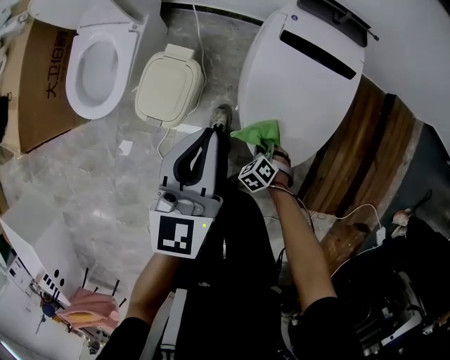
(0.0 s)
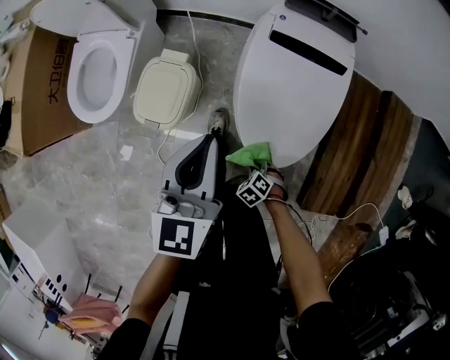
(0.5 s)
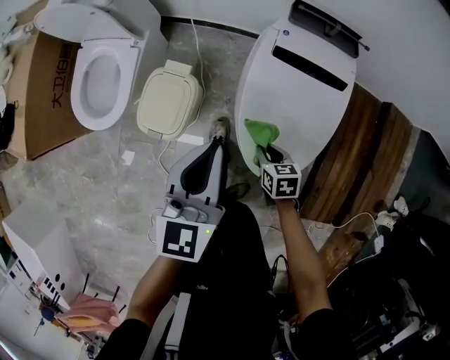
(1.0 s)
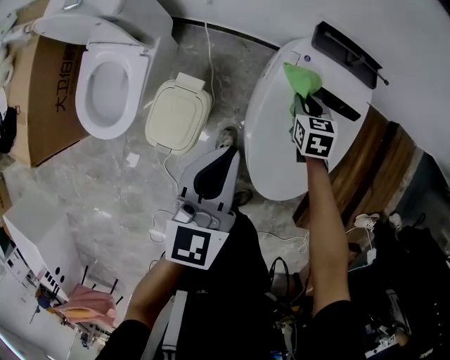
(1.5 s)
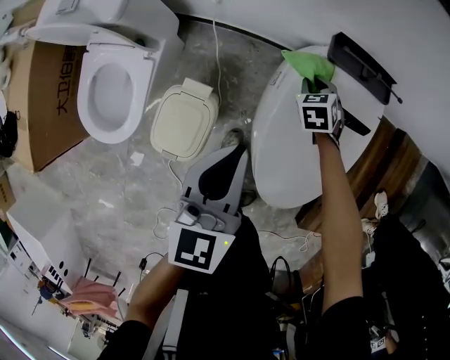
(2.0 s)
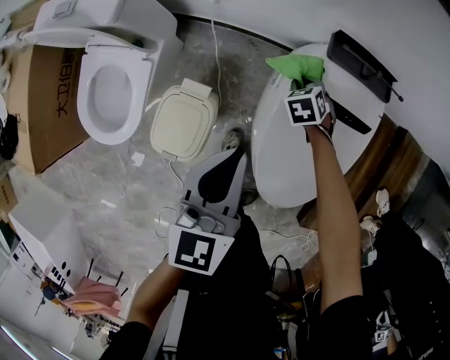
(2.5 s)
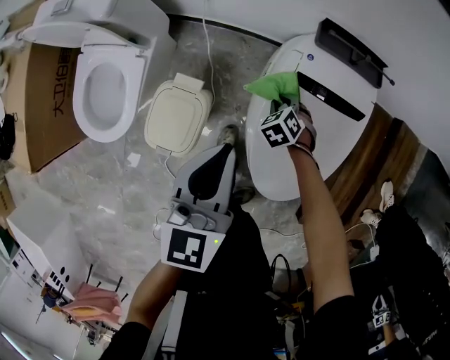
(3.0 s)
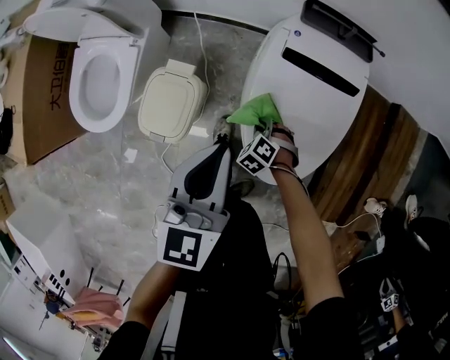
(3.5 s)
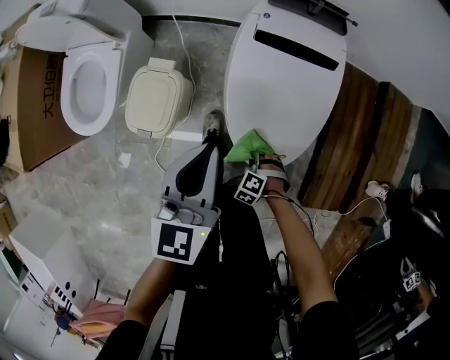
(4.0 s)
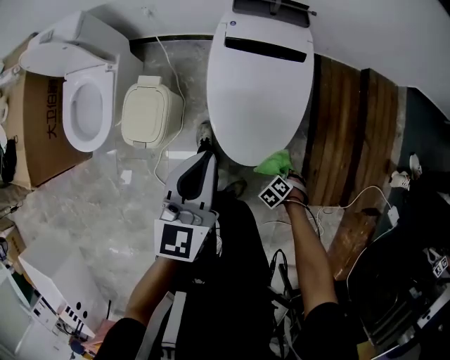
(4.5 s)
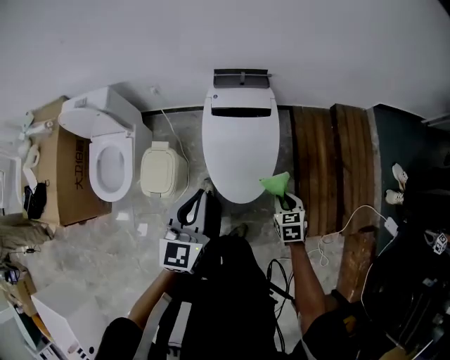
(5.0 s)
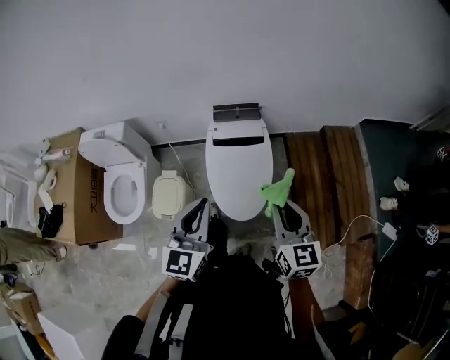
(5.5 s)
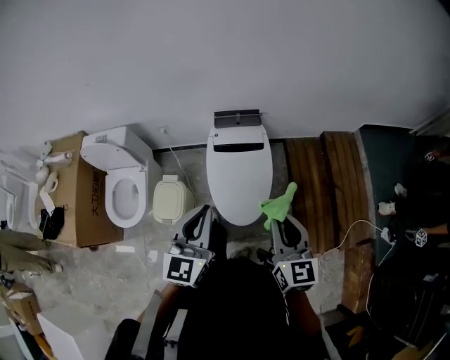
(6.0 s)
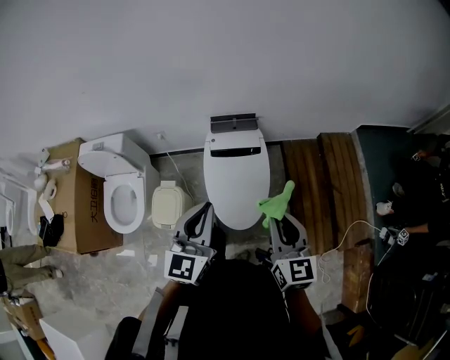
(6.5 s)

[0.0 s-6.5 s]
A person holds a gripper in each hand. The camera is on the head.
0.0 to 2.0 s: The right gripper moves some 40 cm, and changes its angle by roughly 30 degrees; the left gripper moves about 15 cm.
2.0 to 4.5 s: The left gripper ends up about 25 cm from where it was; the right gripper shifts by approximately 60 cm, and swivels approximately 40 degrees.
4.5 to 6.5 s: The left gripper heads upward, covering approximately 30 cm. Meanwhile the right gripper goes about 70 cm upward, and tips its fingers upward by about 70 degrees.

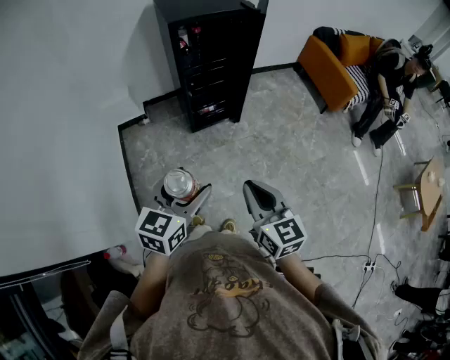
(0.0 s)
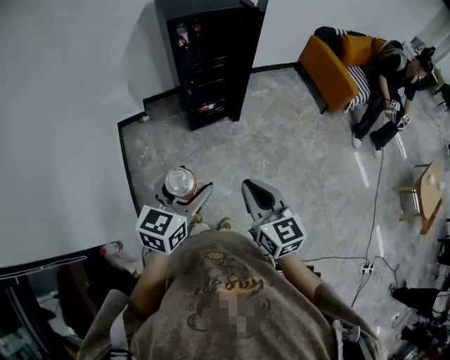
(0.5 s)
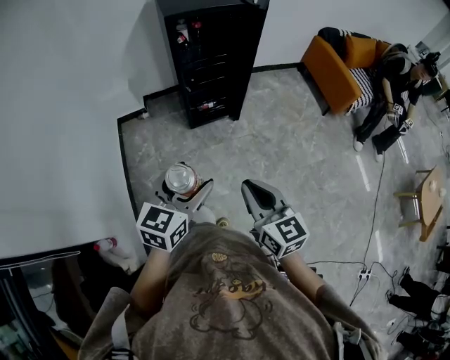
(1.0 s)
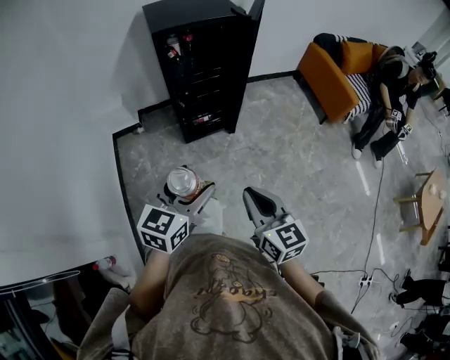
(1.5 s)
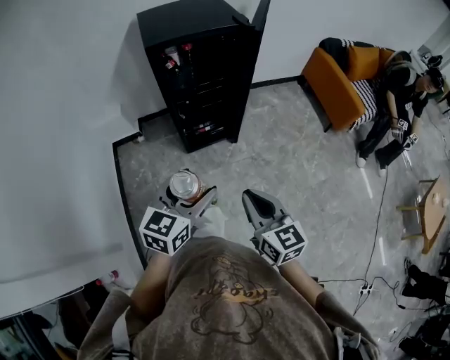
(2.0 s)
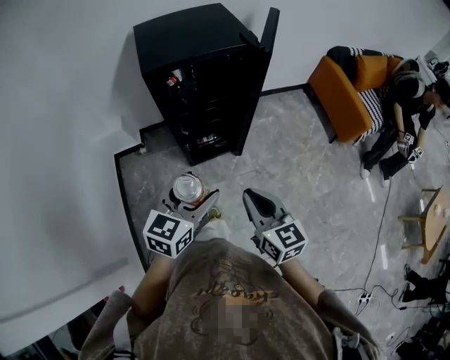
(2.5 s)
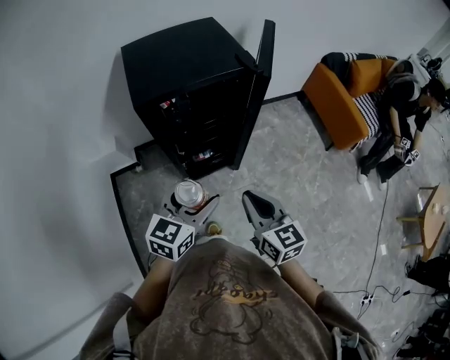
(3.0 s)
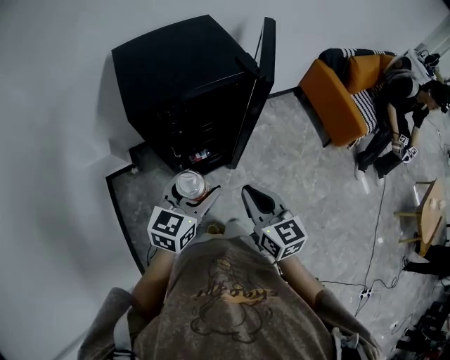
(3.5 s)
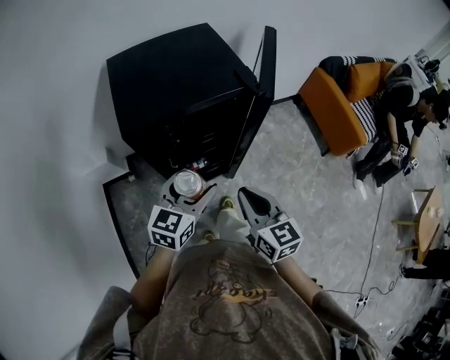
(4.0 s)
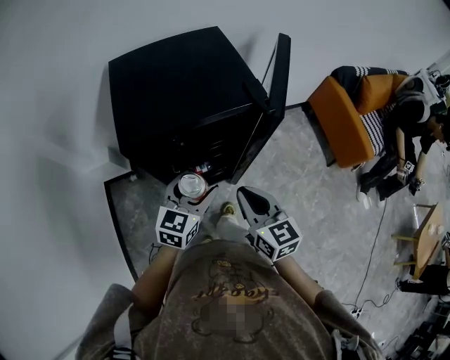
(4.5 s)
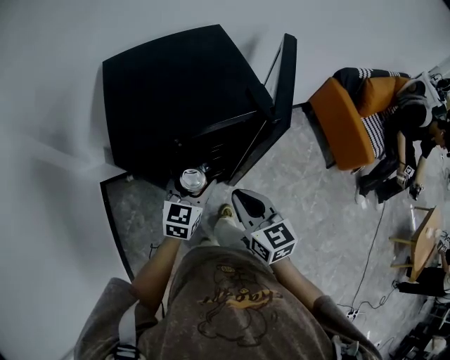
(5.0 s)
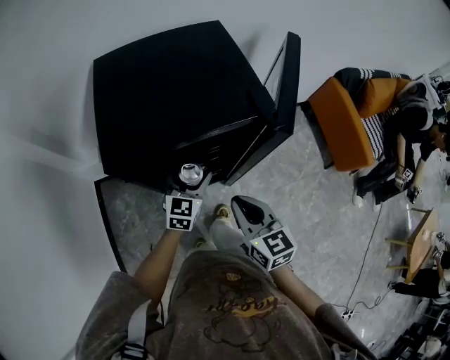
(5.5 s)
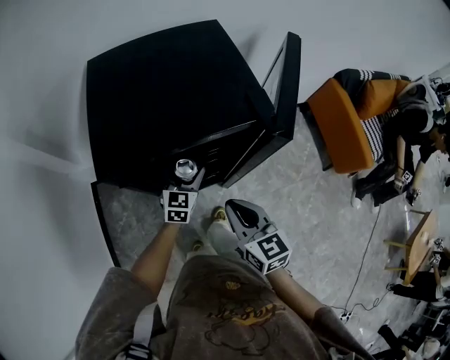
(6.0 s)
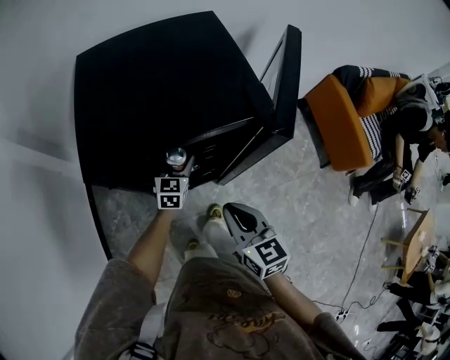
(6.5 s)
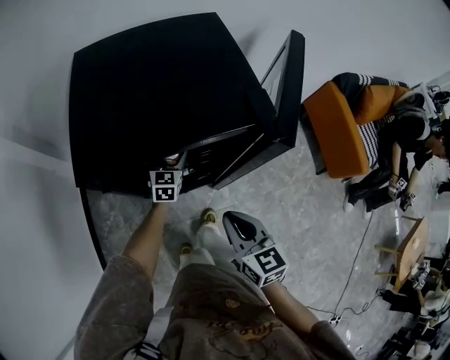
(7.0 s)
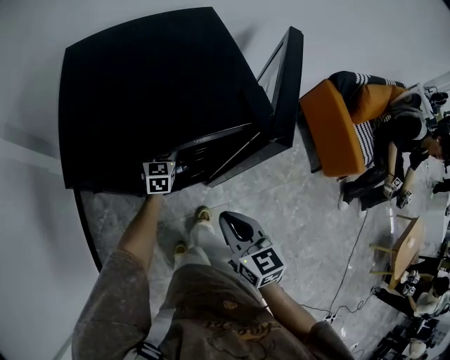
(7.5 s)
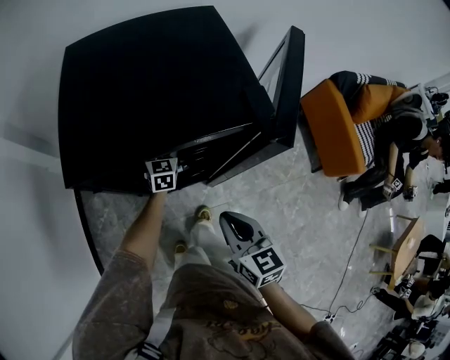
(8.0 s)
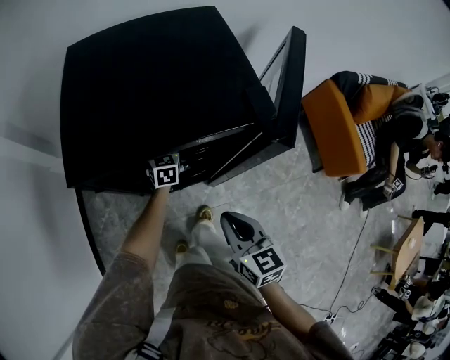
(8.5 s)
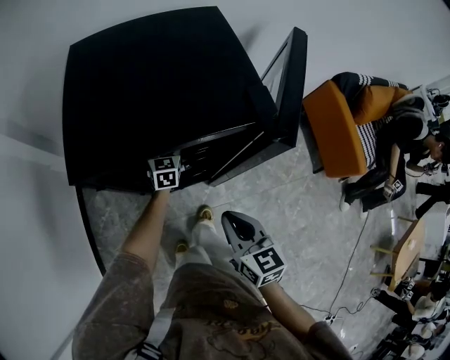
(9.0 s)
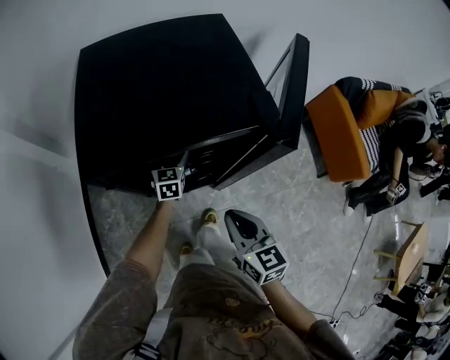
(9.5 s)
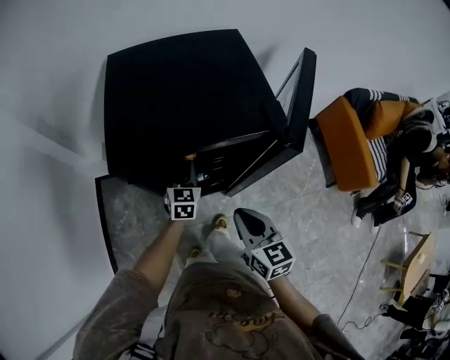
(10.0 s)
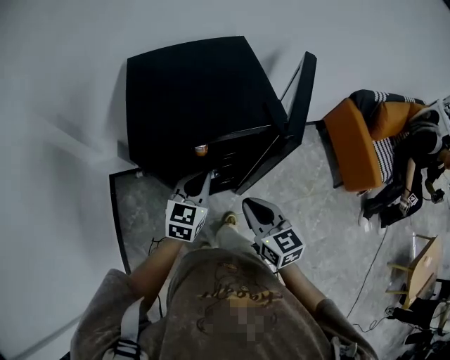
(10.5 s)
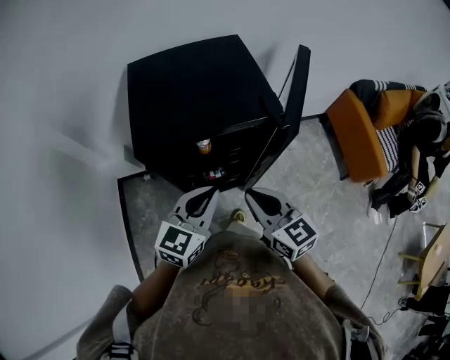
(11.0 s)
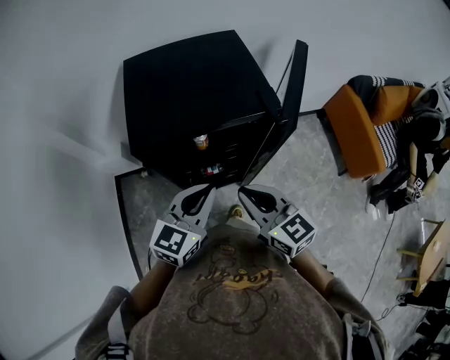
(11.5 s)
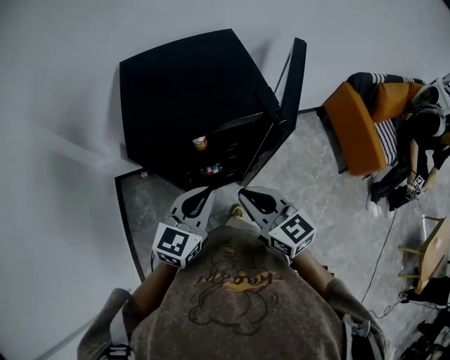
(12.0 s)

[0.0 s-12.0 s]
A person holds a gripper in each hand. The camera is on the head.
0.0 to 2.0 s: The right gripper travels forward by some 15 cm. The left gripper travels forward and to the right by some 20 cm.
2.0 to 4.0 s: Both grippers move forward, roughly 30 cm.
4.0 to 6.0 s: The left gripper goes about 25 cm forward and downward, while the right gripper travels forward and downward by some 10 cm.
6.0 to 8.0 s: The left gripper is displaced forward and downward by approximately 15 cm.
8.0 to 10.0 s: The left gripper heads backward and upward, covering roughly 10 cm, and closes.
10.0 to 12.0 s: The right gripper shifts some 10 cm upward; the left gripper heads upward and backward, covering approximately 25 cm, and changes its angle by some 30 degrees.

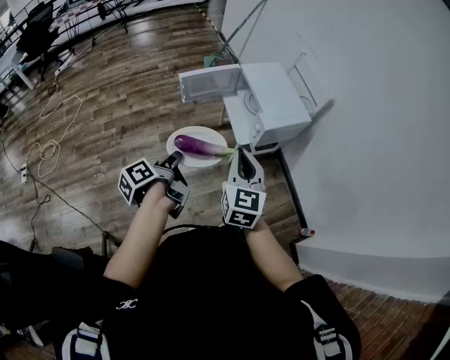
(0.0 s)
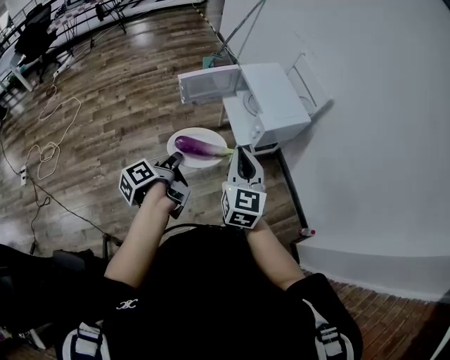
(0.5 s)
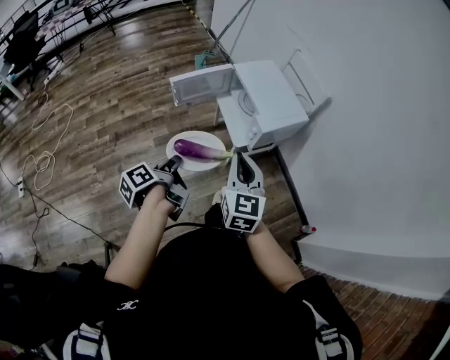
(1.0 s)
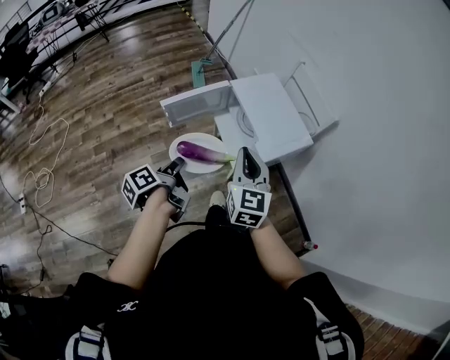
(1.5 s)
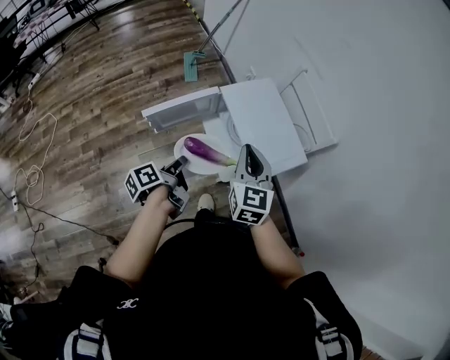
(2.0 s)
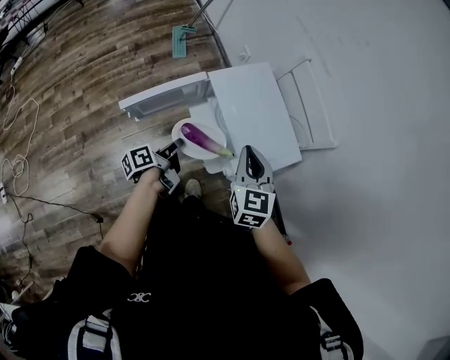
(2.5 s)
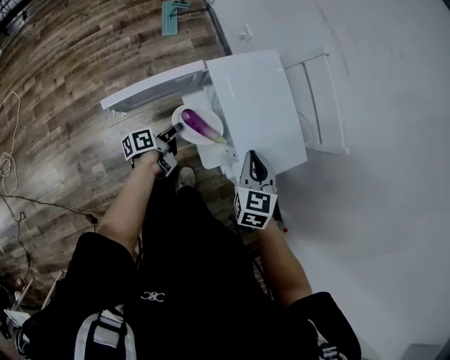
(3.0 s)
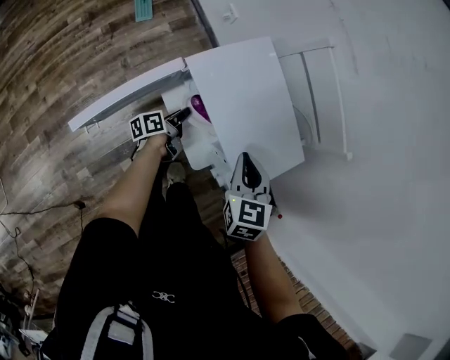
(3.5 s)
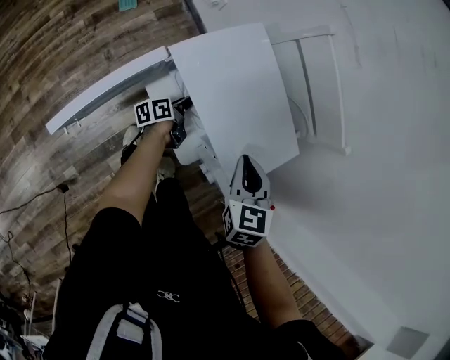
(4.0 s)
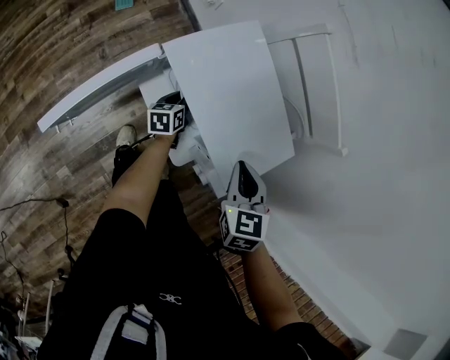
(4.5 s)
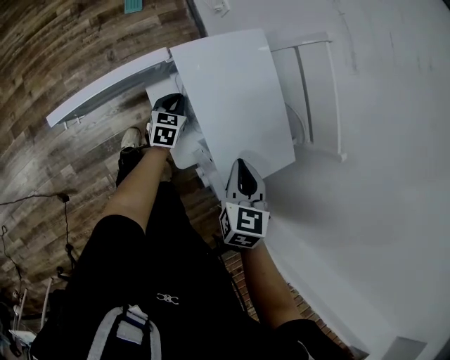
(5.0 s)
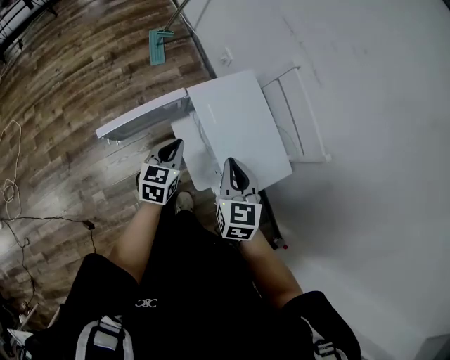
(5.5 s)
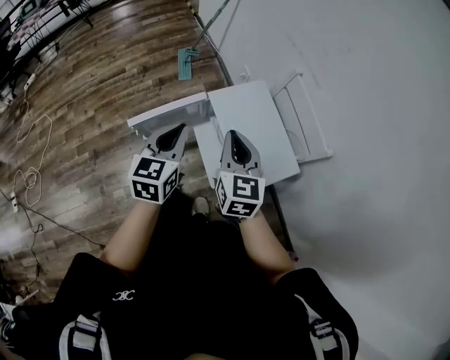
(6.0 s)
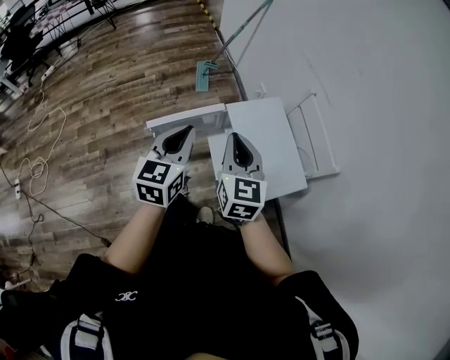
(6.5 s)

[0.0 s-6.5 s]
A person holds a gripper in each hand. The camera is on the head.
0.0 to 2.0 s: Both grippers move forward, approximately 35 cm.
2.0 to 4.5 s: The left gripper moves downward and forward, roughly 40 cm, and rolls clockwise, seen from behind, by roughly 50 degrees, while the right gripper travels downward, forward and to the right by approximately 25 cm, and swivels roughly 30 degrees.
4.5 to 6.5 s: The right gripper shifts about 25 cm upward, and angles its fingers upward, by about 30 degrees. The left gripper is displaced upward by roughly 50 cm, and rotates some 40 degrees.

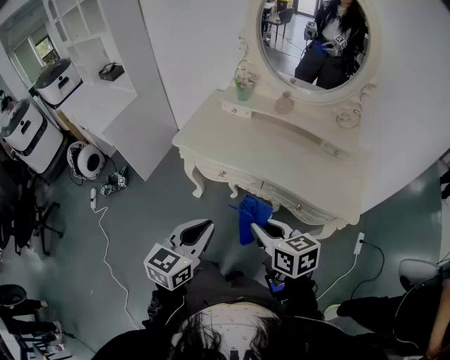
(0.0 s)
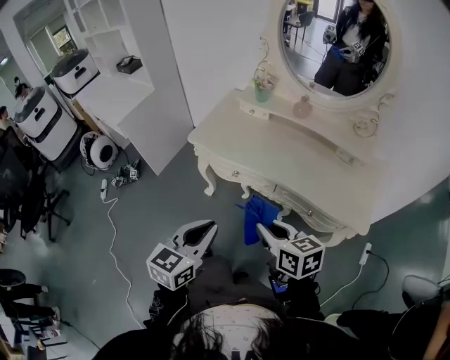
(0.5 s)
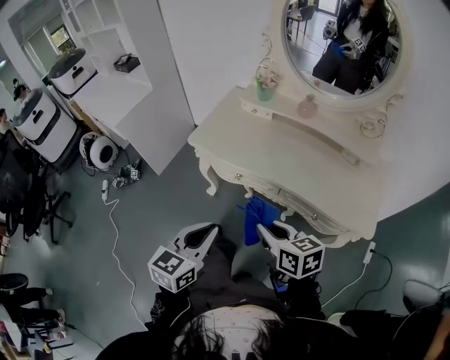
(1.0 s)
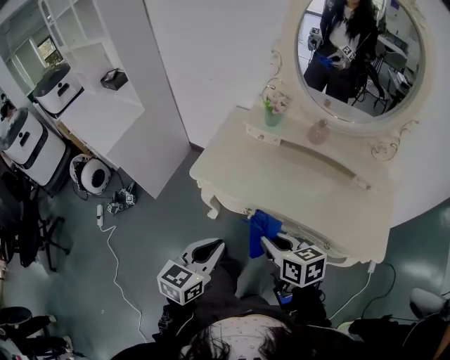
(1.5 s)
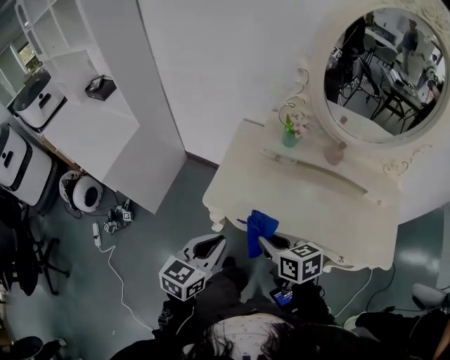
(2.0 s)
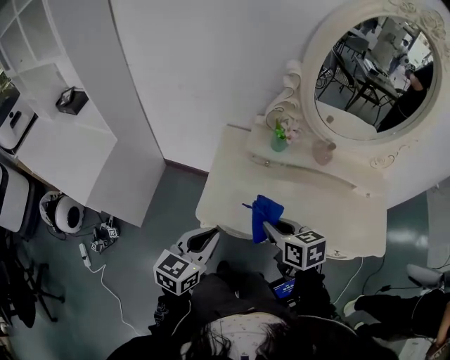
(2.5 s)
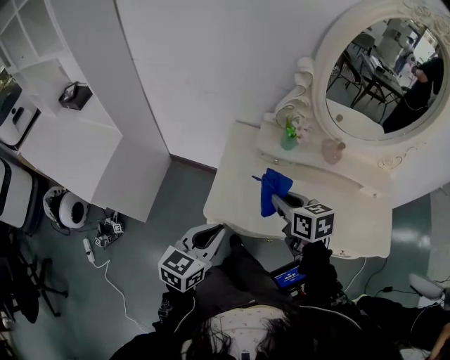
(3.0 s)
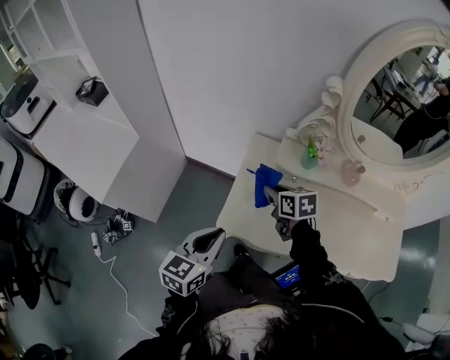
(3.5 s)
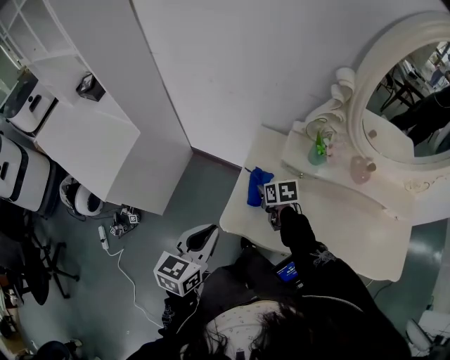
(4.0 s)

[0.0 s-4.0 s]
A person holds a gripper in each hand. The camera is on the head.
0.0 to 2.0 s: The two grippers go about 30 cm forward and to the left.
2.0 to 4.0 s: The left gripper shifts some 15 cm forward and to the left, while the right gripper is displaced forward and downward by roughly 30 cm.
